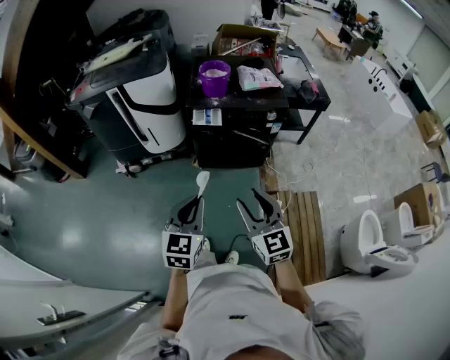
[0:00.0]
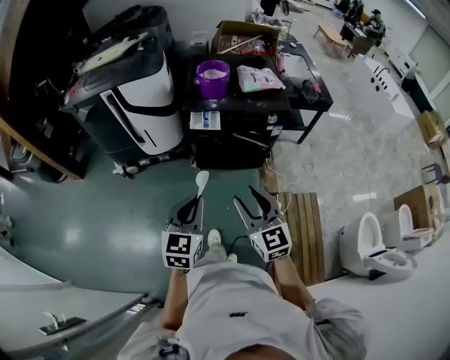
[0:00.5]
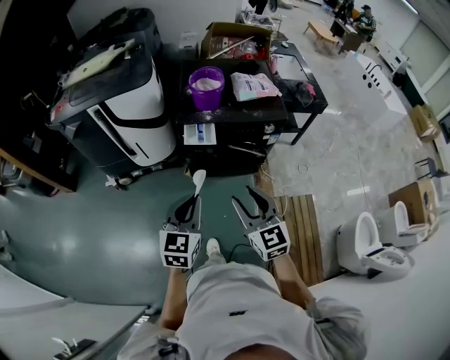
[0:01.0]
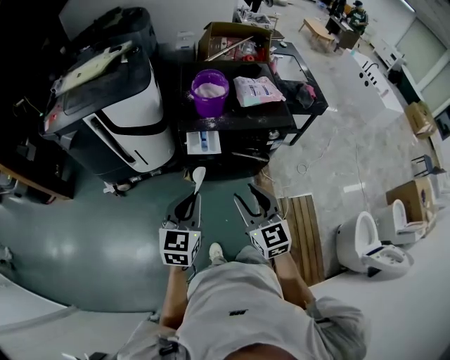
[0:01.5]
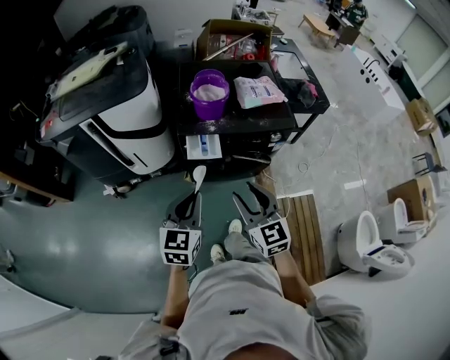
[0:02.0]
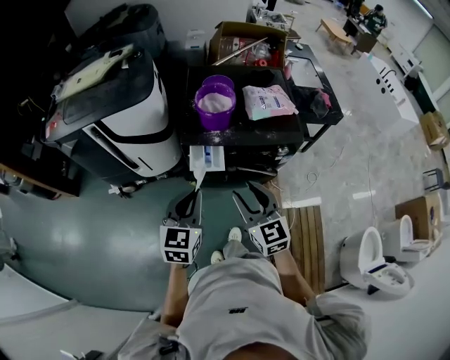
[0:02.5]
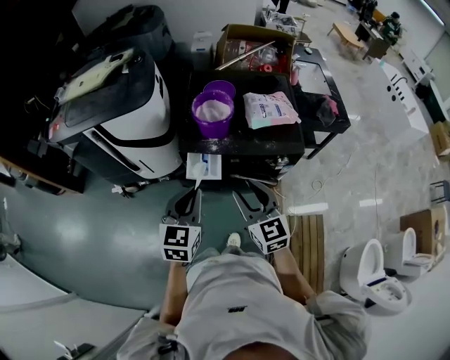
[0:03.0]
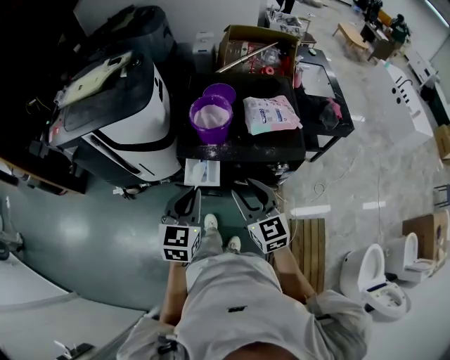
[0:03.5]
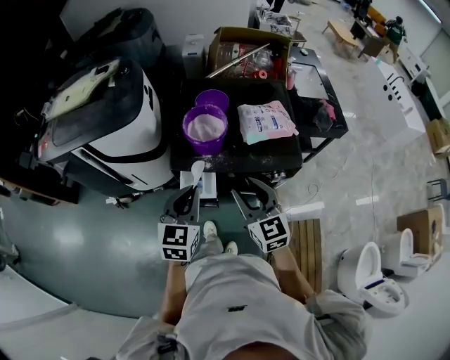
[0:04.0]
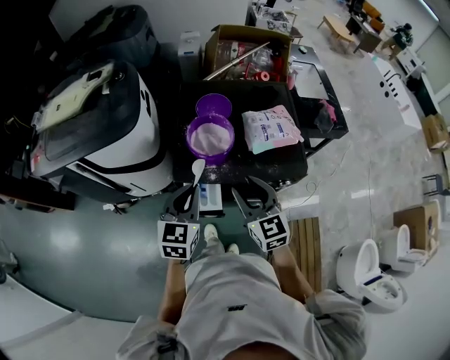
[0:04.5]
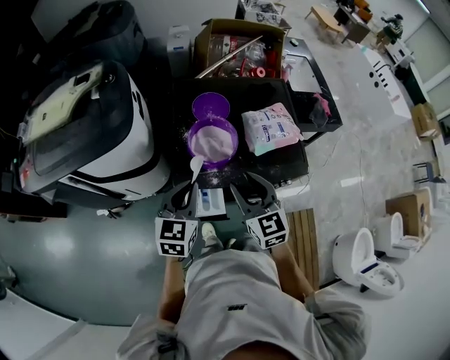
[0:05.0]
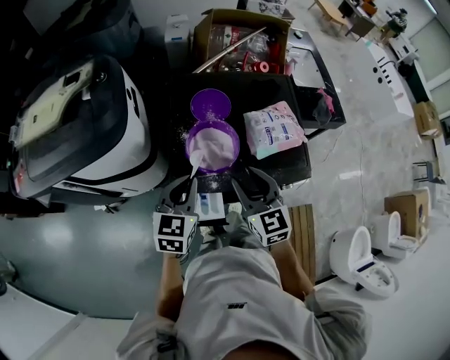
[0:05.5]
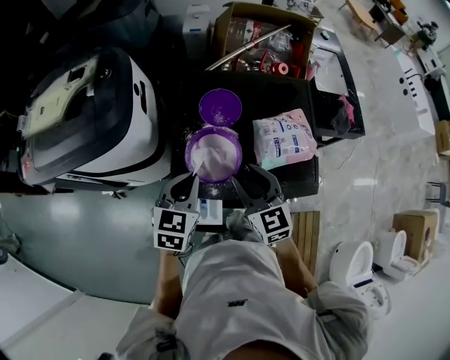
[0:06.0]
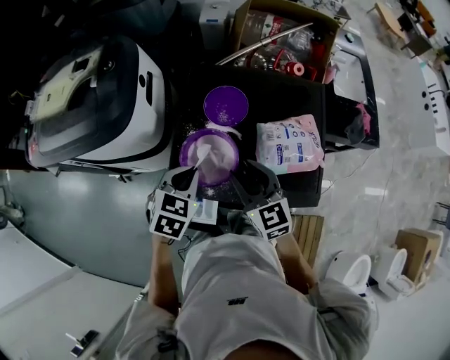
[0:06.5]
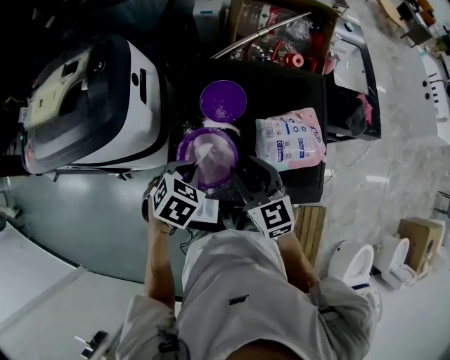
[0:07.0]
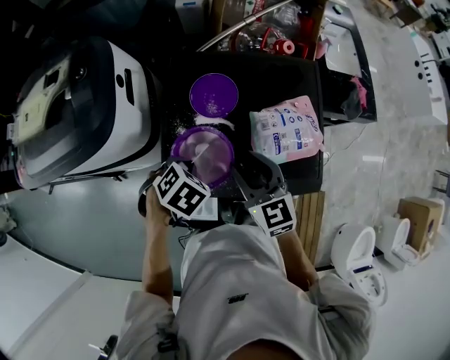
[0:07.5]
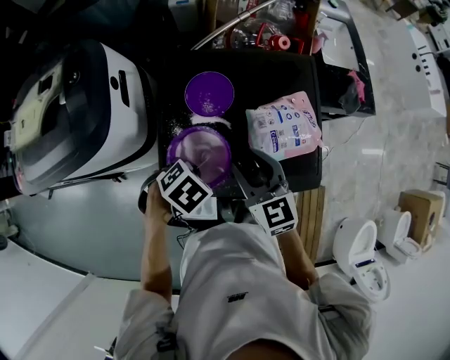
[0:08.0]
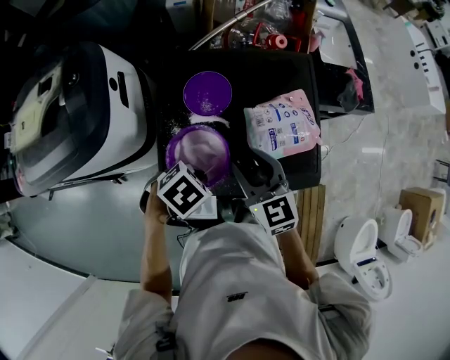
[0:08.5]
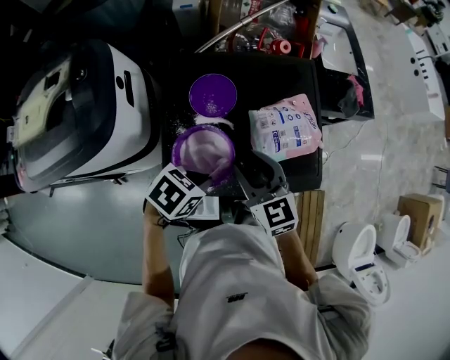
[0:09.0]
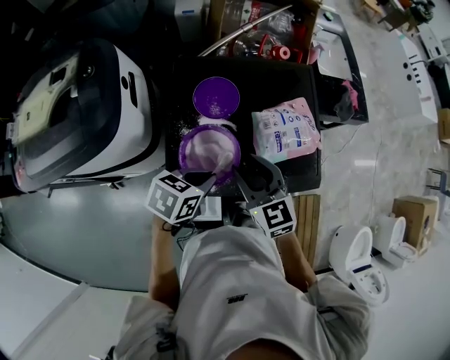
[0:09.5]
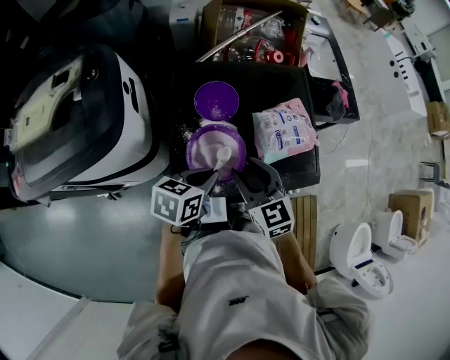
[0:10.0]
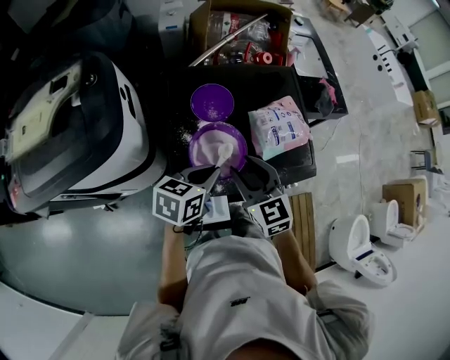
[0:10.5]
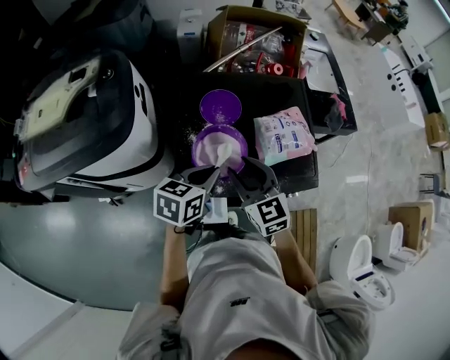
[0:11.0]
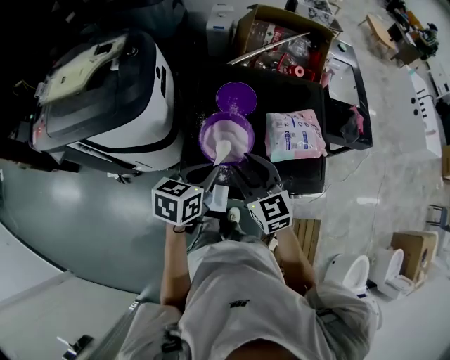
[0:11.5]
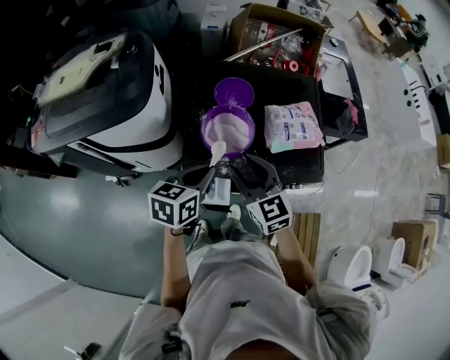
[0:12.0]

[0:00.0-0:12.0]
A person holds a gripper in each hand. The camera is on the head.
0:00.0 to 0:02.0: Both grippers move forward, some 25 cm.
0:02.0 to 0:04.0: The two grippers go about 25 cm forward and to the right.
0:04.0 to 0:06.0: The two grippers go roughly 20 cm forward.
0:06.0 to 0:08.0: The left gripper goes roughly 10 cm downward, and tips its fingers downward by approximately 40 degrees; the right gripper ends up some 10 cm from where it was.
0:08.0 to 0:10.0: The left gripper changes place by some 5 cm, and tilts its fingers roughly 40 degrees upward. The right gripper ends up about 5 cm from where it was.
0:10.0 to 0:12.0: The two grippers go about 10 cm backward.

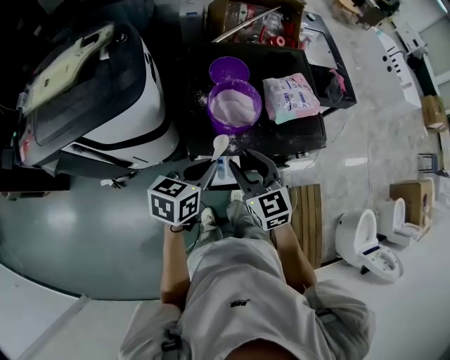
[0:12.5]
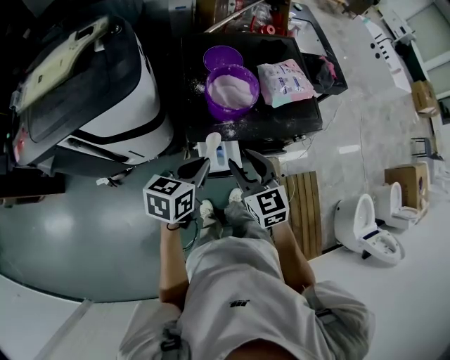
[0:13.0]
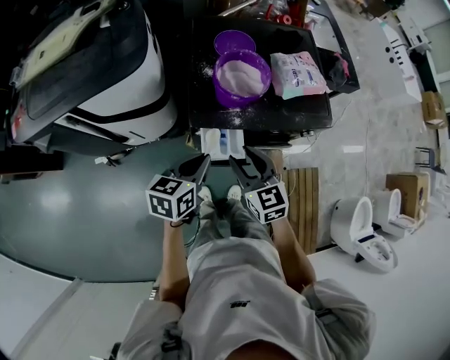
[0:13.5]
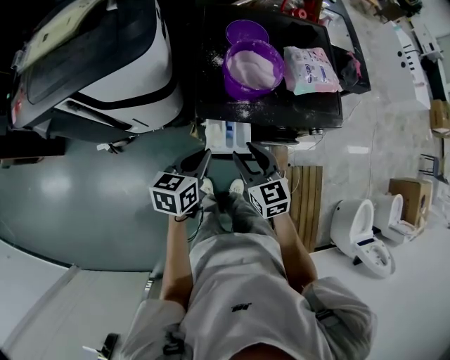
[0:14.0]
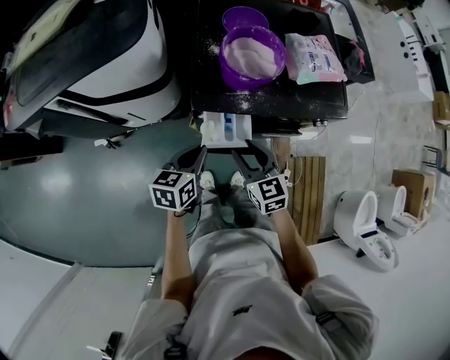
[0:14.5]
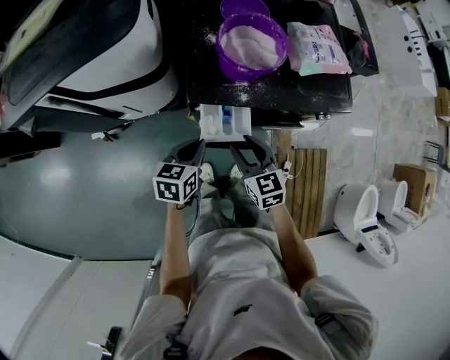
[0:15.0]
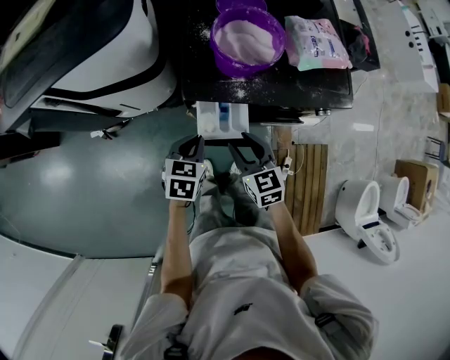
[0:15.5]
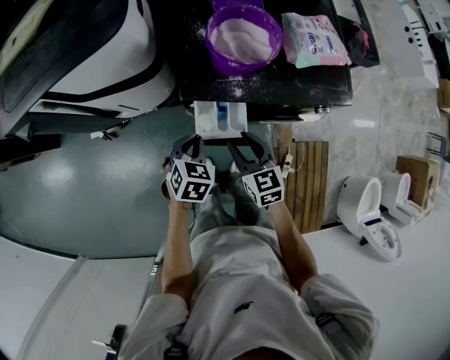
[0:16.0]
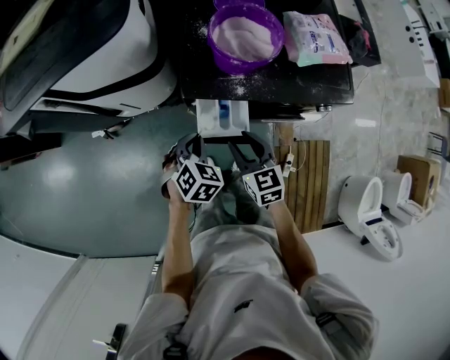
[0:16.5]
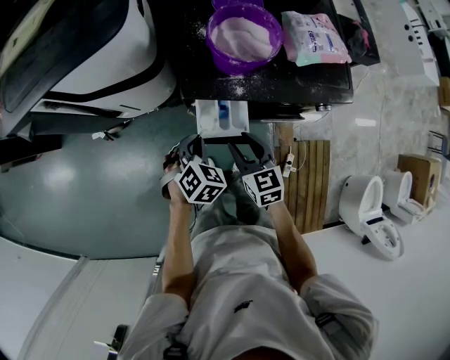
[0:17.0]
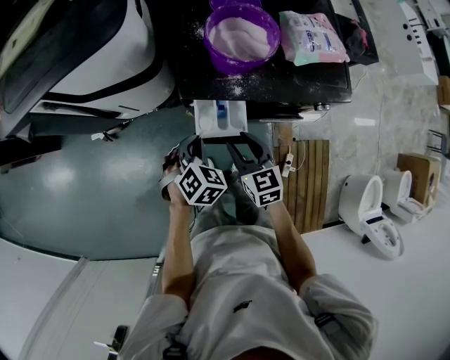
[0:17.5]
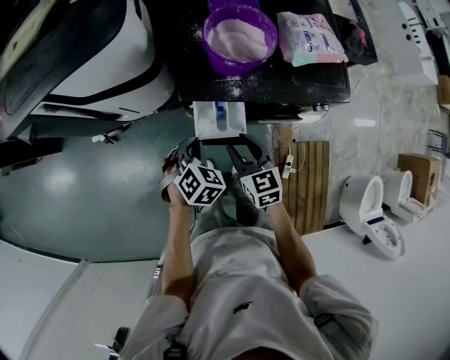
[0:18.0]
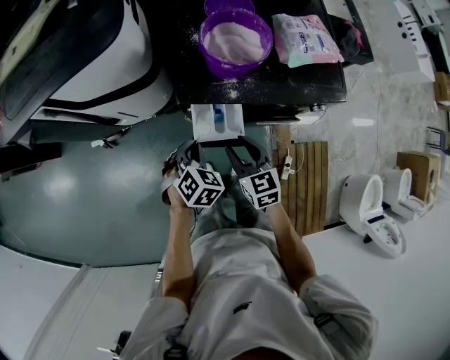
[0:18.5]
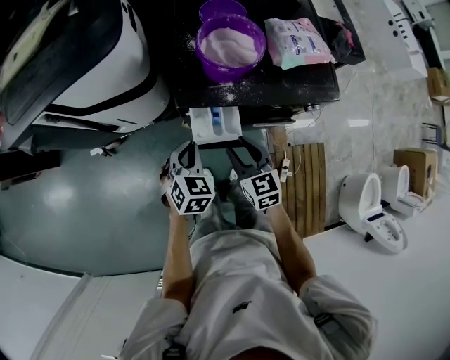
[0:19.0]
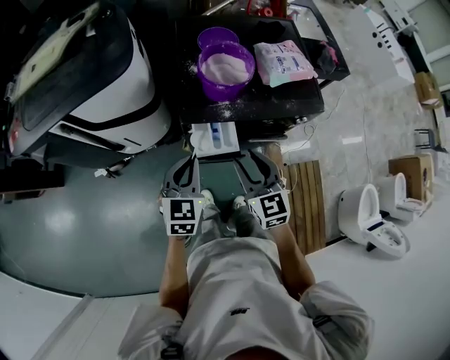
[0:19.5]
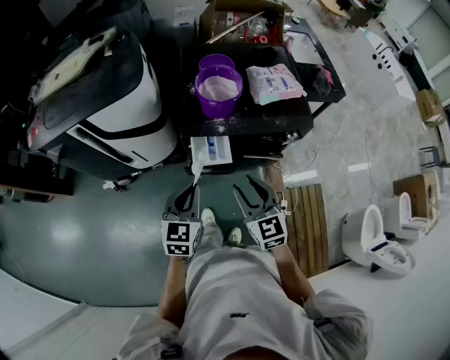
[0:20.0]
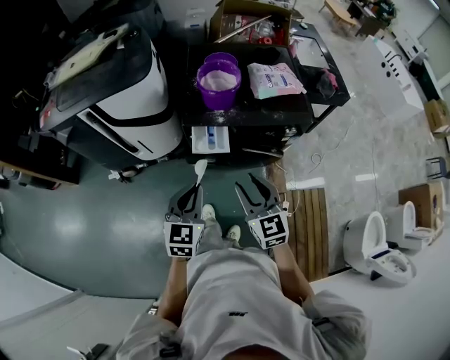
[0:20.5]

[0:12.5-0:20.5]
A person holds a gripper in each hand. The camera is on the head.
0:12.5 to 0:14.5: The grippers both shift downward and backward by about 15 cm.
0:14.5 to 0:16.5: The left gripper is displaced downward by approximately 5 cm, and turns by approximately 50 degrees.
0:16.5 to 0:18.5: Neither gripper changes place.
0:18.5 to 0:20.5: Both grippers travel together upward and backward, approximately 25 cm. The left gripper angles its fingers upward, by about 30 degrees.

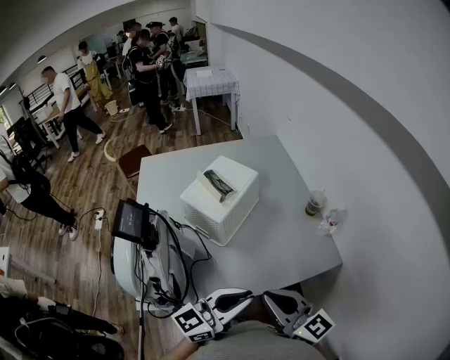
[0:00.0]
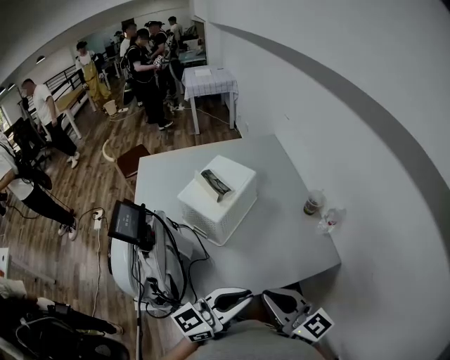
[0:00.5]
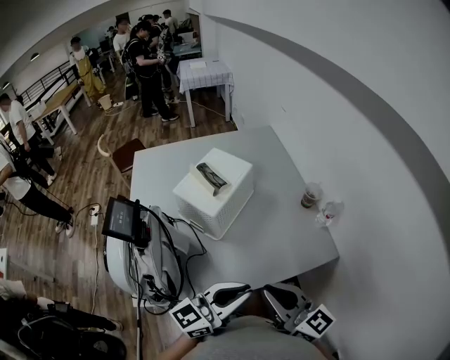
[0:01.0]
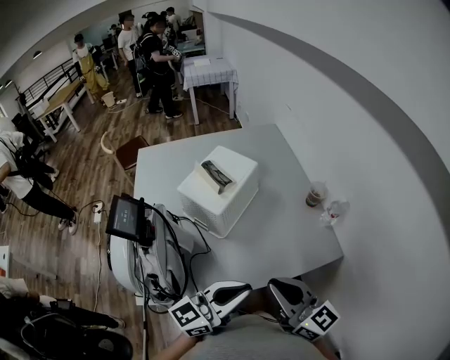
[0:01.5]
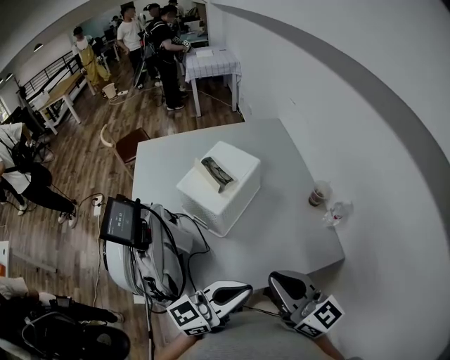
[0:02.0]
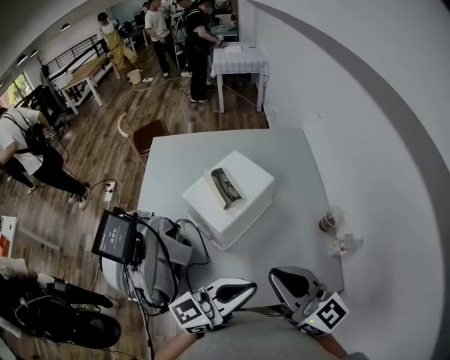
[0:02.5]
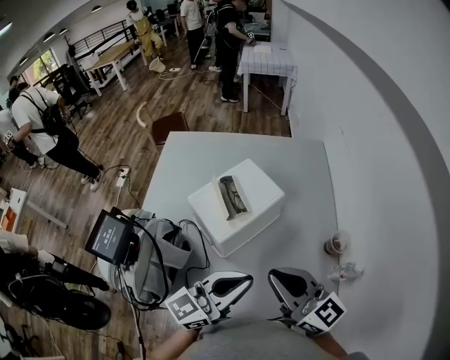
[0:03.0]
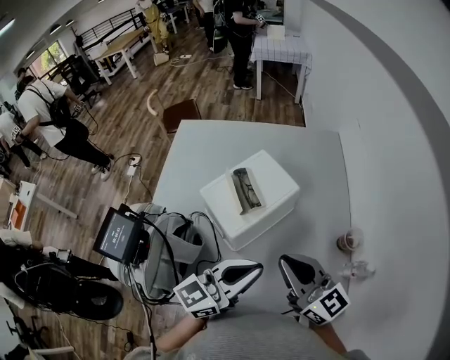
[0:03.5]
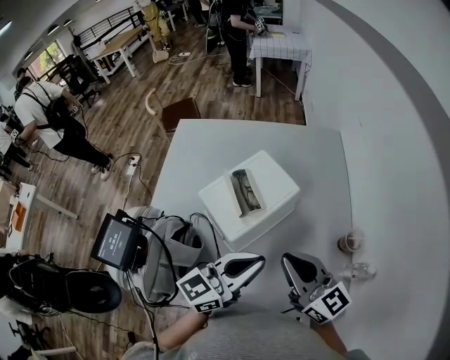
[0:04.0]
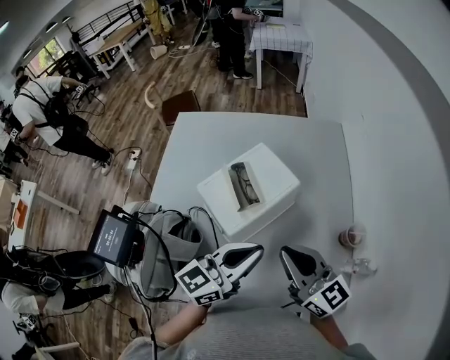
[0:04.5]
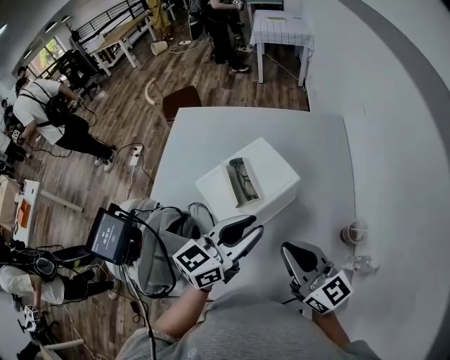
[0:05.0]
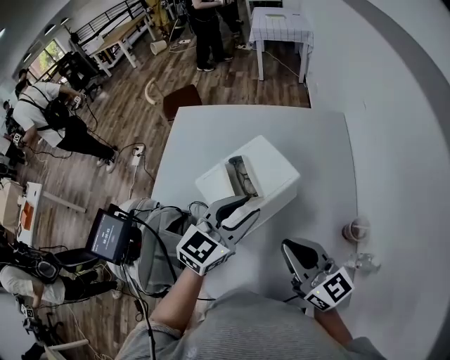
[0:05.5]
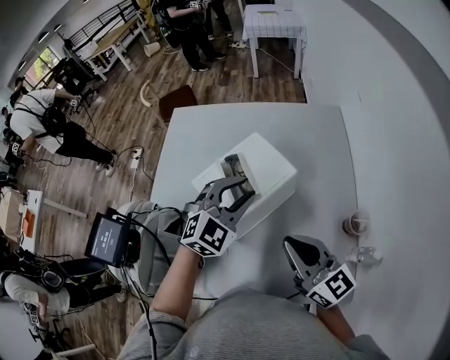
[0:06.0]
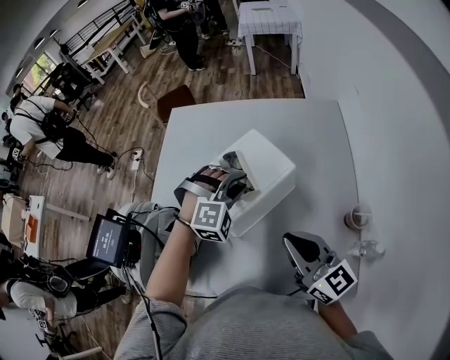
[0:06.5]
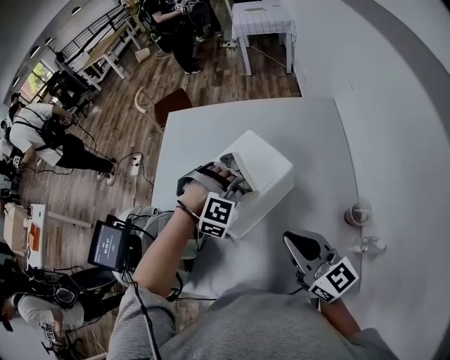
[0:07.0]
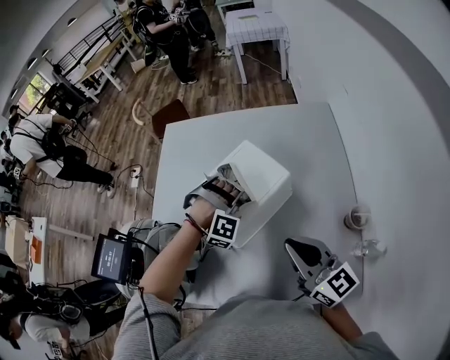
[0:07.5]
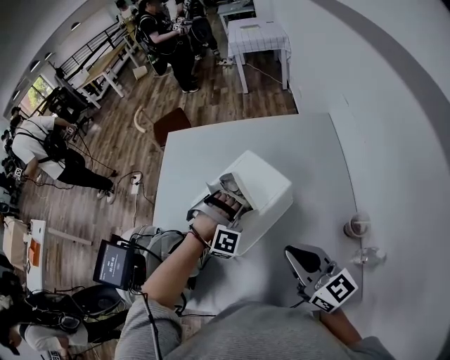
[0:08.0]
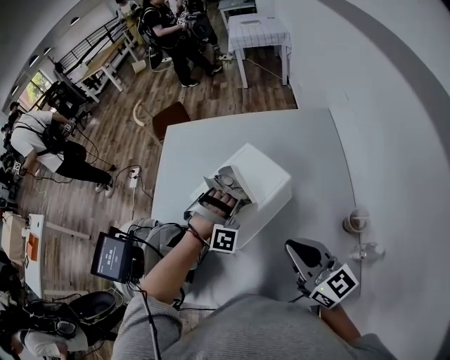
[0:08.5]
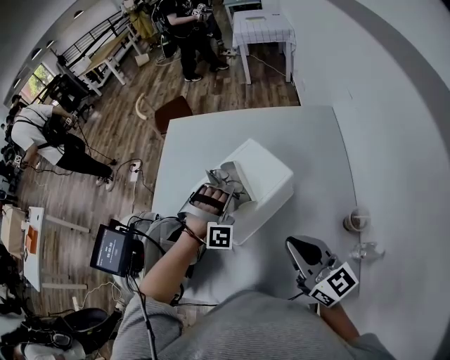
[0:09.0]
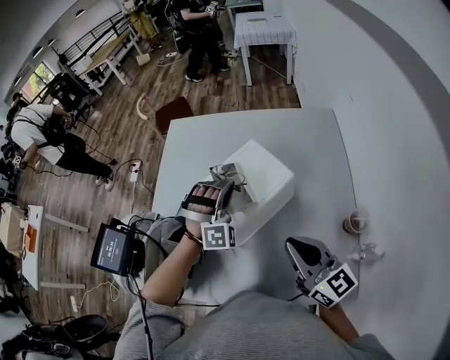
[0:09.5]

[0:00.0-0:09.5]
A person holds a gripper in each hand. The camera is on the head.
0:00.0 to 0:02.0: The right gripper goes about 5 cm forward.
0:02.0 to 0:04.0: Both grippers travel together forward, approximately 20 cm. The left gripper turns by about 20 degrees.
0:04.0 to 0:05.5: The left gripper travels forward by some 10 cm, rotates some 30 degrees, and opens up.
0:05.5 to 0:07.5: The left gripper heads downward and forward, covering roughly 15 cm, and rolls clockwise, seen from behind, by roughly 90 degrees.
0:07.5 to 0:09.5: The left gripper goes about 10 cm upward, swivels roughly 40 degrees, and closes up.
